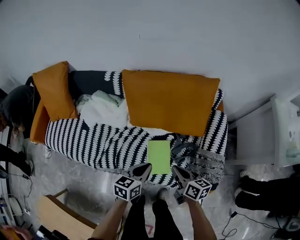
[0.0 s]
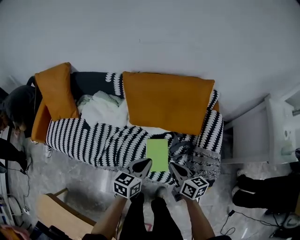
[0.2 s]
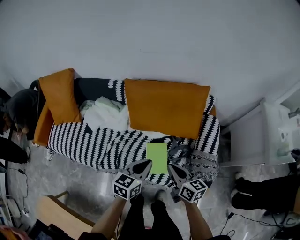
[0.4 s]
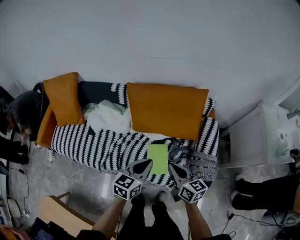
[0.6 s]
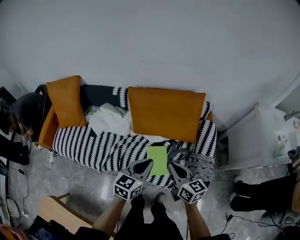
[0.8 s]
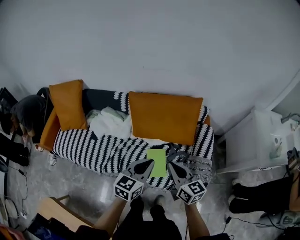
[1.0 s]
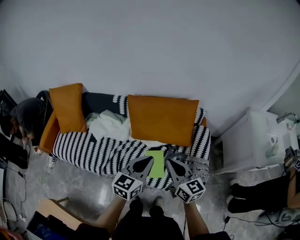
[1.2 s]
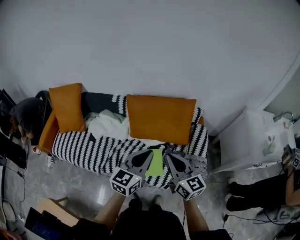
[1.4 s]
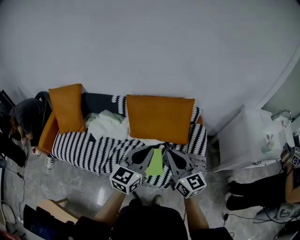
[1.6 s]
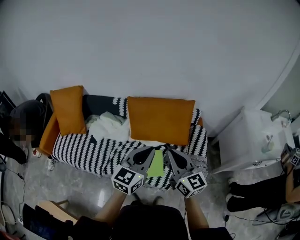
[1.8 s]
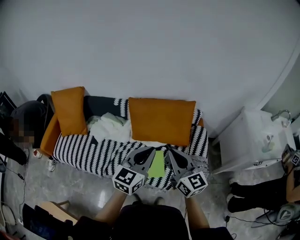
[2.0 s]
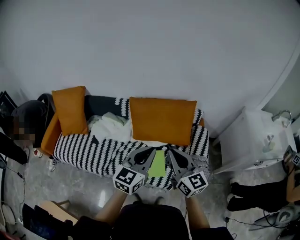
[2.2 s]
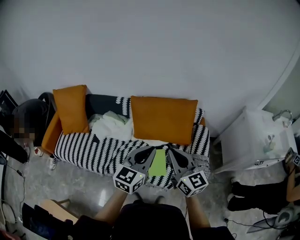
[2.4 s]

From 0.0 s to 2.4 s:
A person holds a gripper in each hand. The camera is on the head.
From 0.0 s to 1.2 s: Both grippers travel together upward, some 30 cm. The right gripper changes its angle by some 30 degrees. Meanwhile the left gripper turns by about 30 degrees.
From 1.2 s to 2.4 s: The grippers both shift upward by some 5 cm.

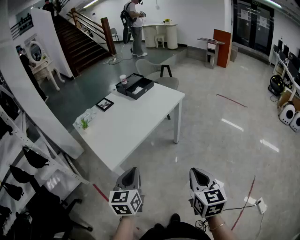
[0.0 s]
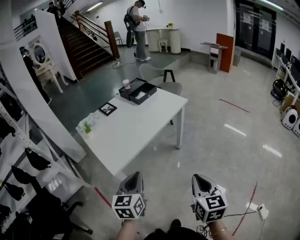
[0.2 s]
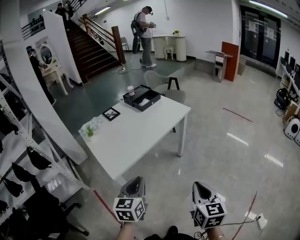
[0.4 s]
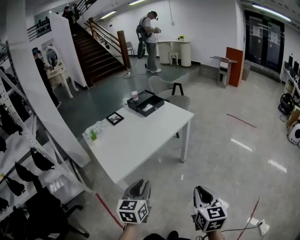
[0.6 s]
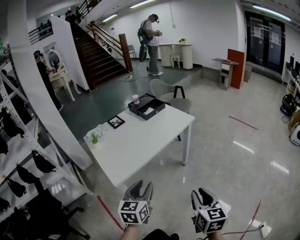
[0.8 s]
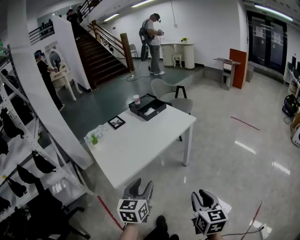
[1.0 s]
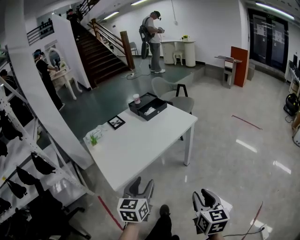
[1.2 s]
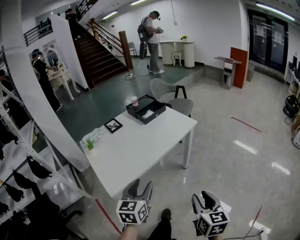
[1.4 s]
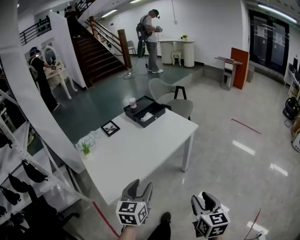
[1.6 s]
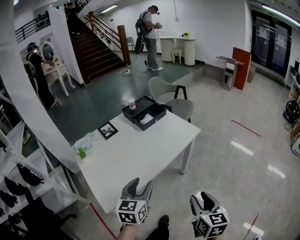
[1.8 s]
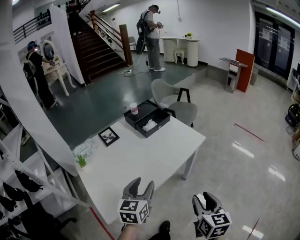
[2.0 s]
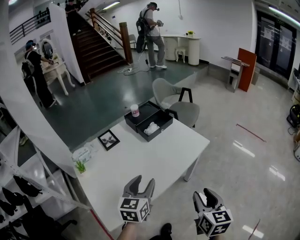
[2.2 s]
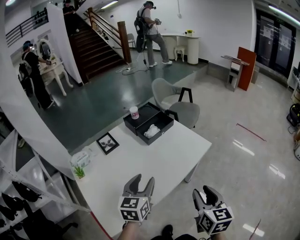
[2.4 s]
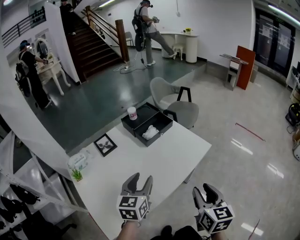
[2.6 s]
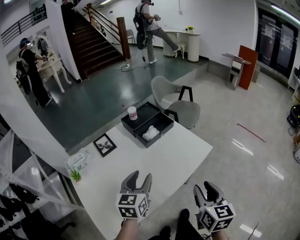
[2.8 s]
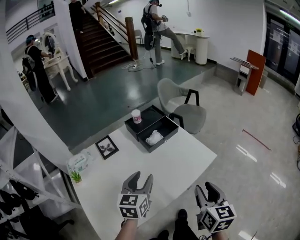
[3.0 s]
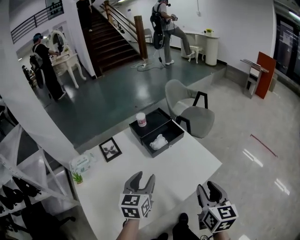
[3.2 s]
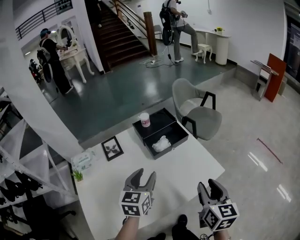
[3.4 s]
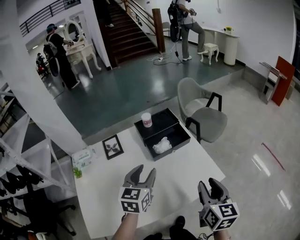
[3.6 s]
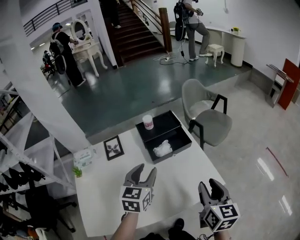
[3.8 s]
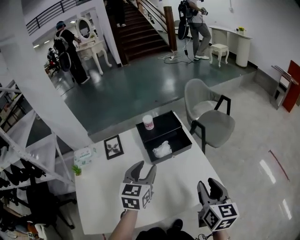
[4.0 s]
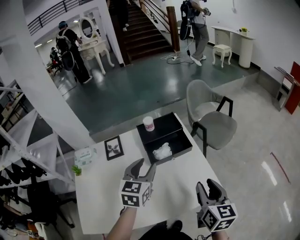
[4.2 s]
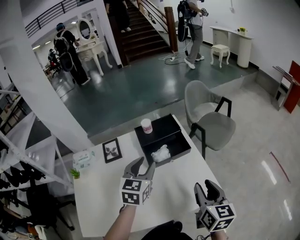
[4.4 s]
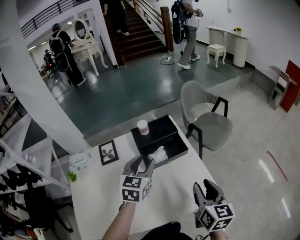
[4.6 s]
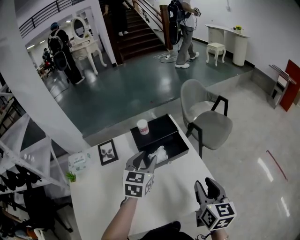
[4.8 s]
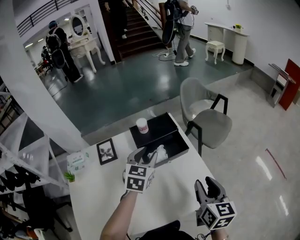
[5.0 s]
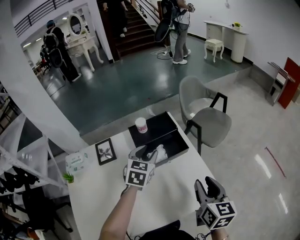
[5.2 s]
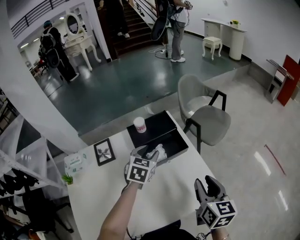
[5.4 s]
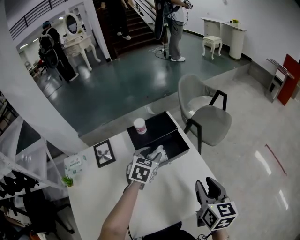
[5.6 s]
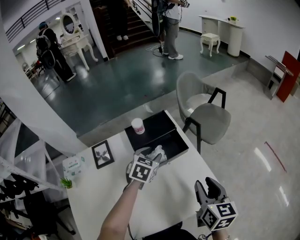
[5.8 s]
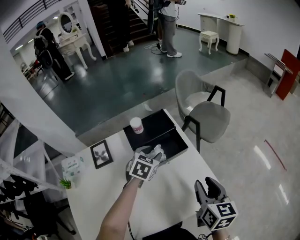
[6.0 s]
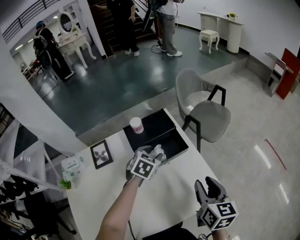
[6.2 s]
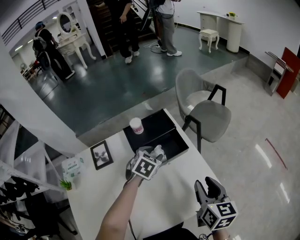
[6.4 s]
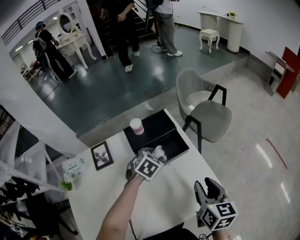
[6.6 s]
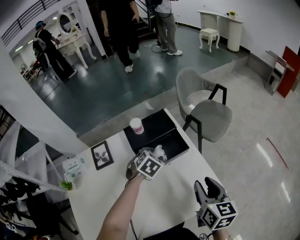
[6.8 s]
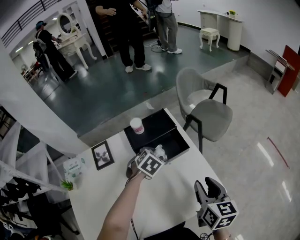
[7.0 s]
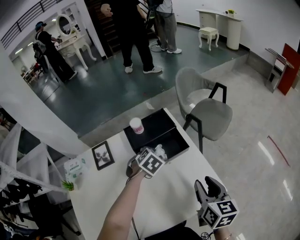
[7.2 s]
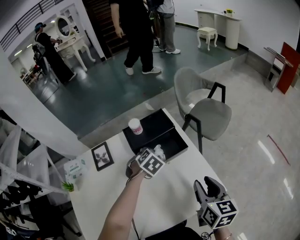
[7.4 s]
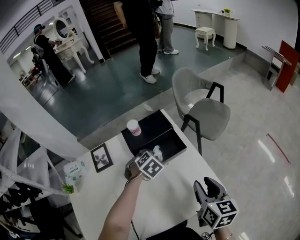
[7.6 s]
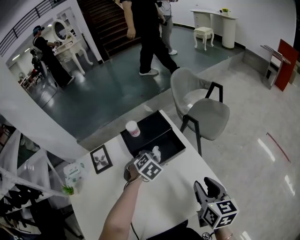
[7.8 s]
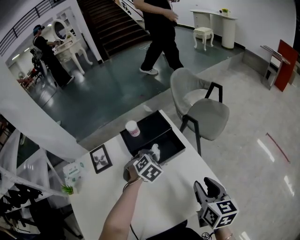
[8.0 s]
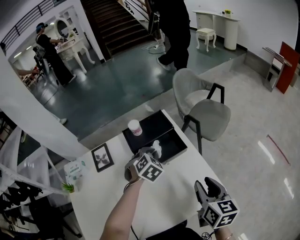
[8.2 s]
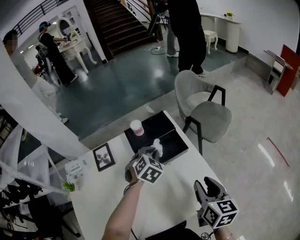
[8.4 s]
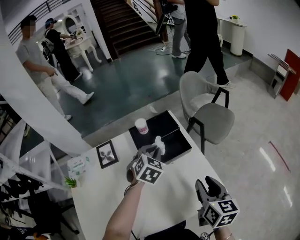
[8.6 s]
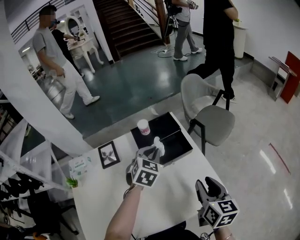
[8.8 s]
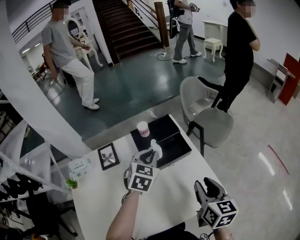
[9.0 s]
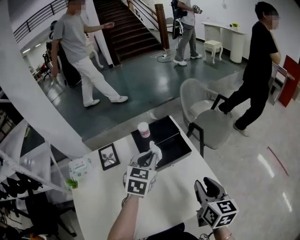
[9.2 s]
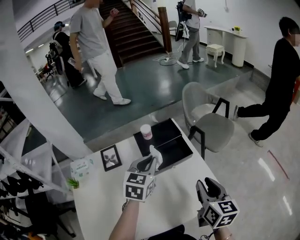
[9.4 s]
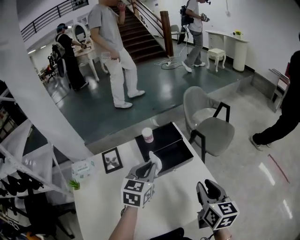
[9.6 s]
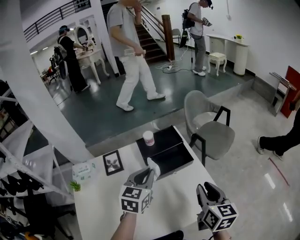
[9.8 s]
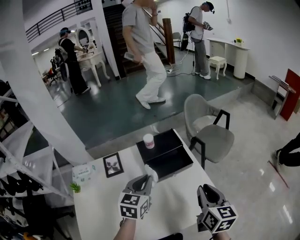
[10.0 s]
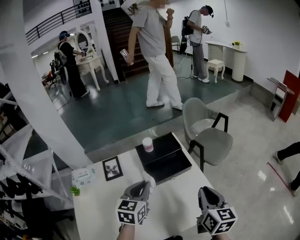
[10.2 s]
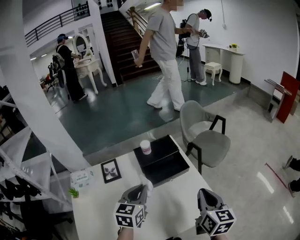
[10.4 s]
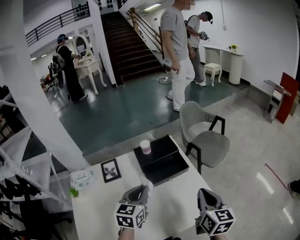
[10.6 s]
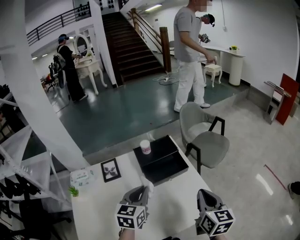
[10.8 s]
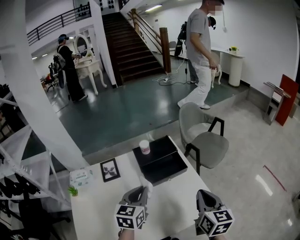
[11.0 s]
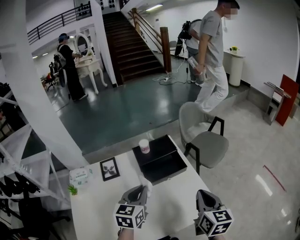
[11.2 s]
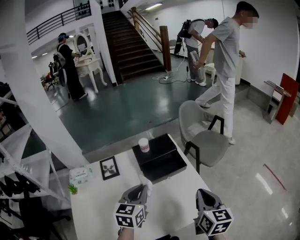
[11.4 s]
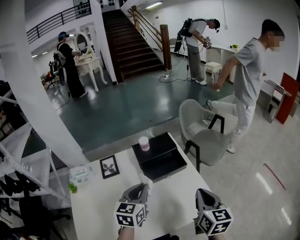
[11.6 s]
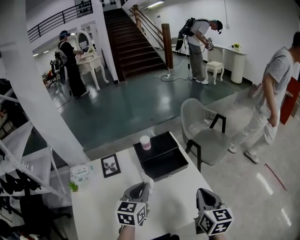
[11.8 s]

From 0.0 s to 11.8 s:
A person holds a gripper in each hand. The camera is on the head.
From 0.0 s to 1.4 s: Both grippers move forward, about 10 cm. The right gripper opens. Meanwhile the left gripper opens its fingers.
From 1.4 s to 3.0 s: Both grippers move forward, approximately 40 cm.
From 3.0 s to 4.4 s: Both grippers move forward, about 20 cm.
From 4.4 s to 6.0 s: The left gripper is displaced forward and downward by roughly 15 cm, and changes its angle by approximately 30 degrees, while the right gripper ends up approximately 5 cm from where it was.
From 6.0 s to 7.4 s: The left gripper changes its angle by about 30 degrees.
From 7.4 s to 8.8 s: The left gripper heads upward, covering about 10 cm, turns by approximately 30 degrees, and closes up.
From 8.8 s to 10.4 s: The left gripper moves backward and to the left, some 15 cm, and changes its angle by roughly 30 degrees. Meanwhile the right gripper closes.
From 10.4 s to 11.8 s: The grippers move only a little.

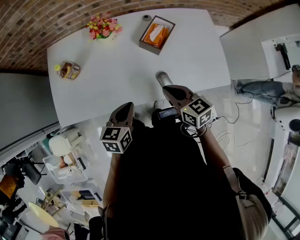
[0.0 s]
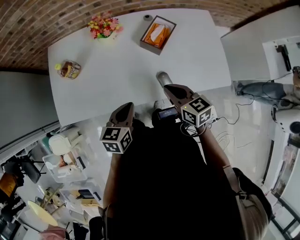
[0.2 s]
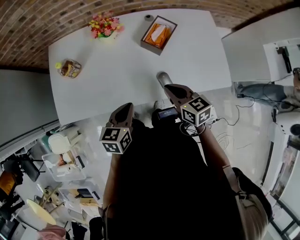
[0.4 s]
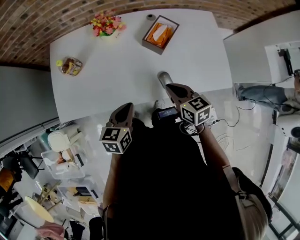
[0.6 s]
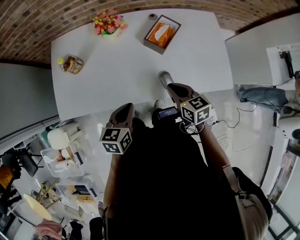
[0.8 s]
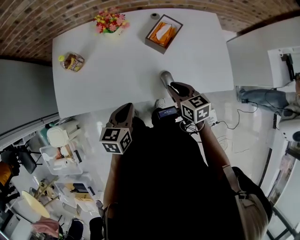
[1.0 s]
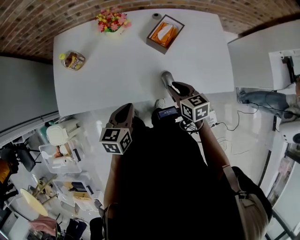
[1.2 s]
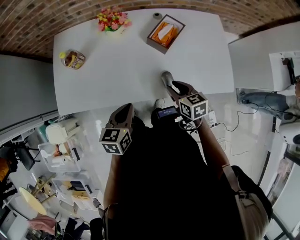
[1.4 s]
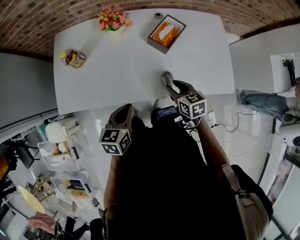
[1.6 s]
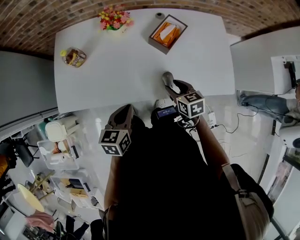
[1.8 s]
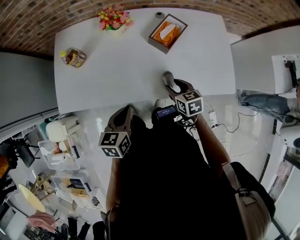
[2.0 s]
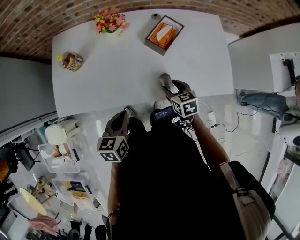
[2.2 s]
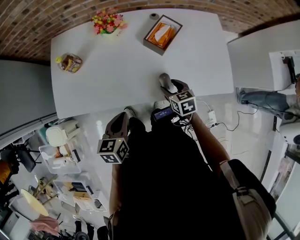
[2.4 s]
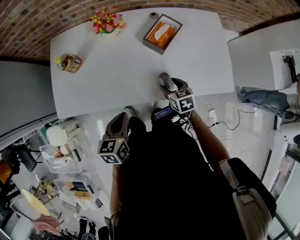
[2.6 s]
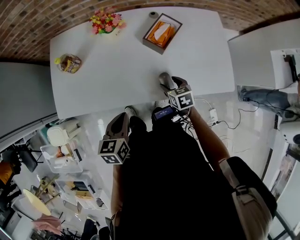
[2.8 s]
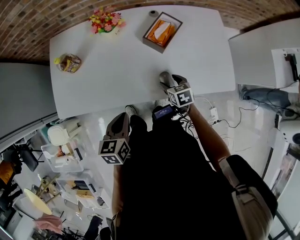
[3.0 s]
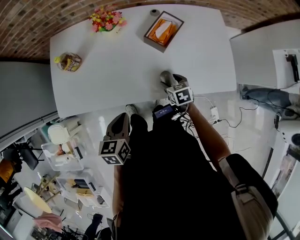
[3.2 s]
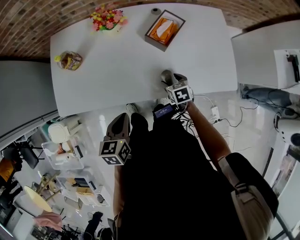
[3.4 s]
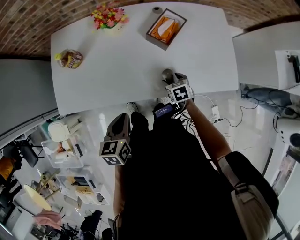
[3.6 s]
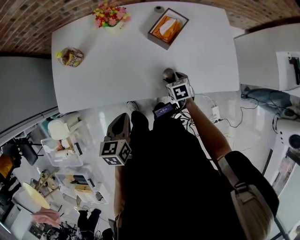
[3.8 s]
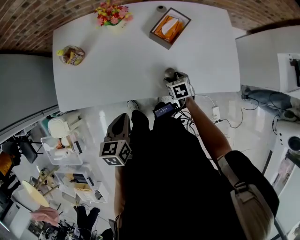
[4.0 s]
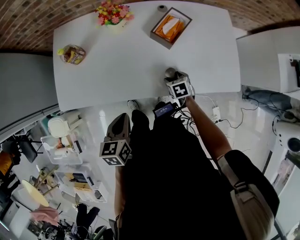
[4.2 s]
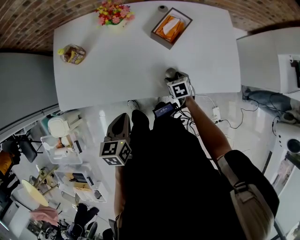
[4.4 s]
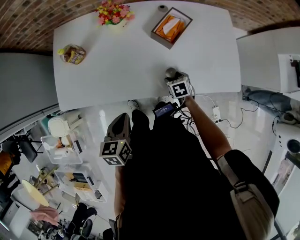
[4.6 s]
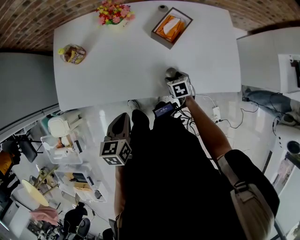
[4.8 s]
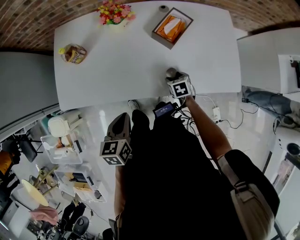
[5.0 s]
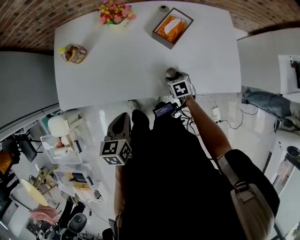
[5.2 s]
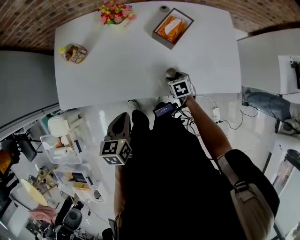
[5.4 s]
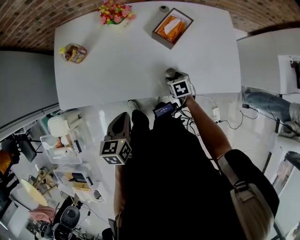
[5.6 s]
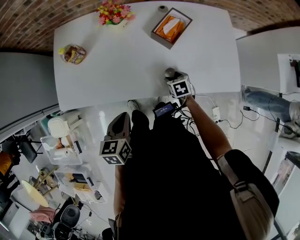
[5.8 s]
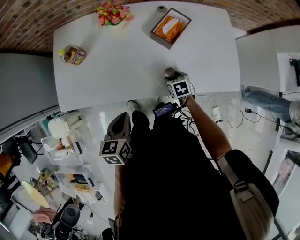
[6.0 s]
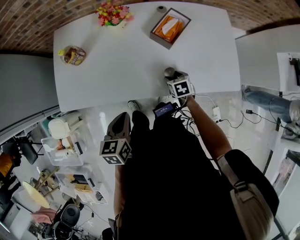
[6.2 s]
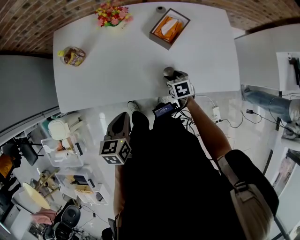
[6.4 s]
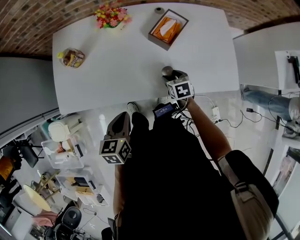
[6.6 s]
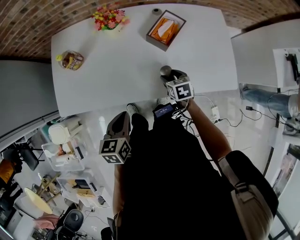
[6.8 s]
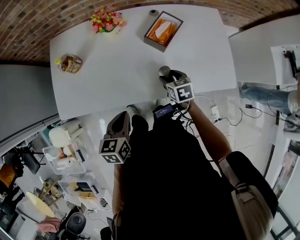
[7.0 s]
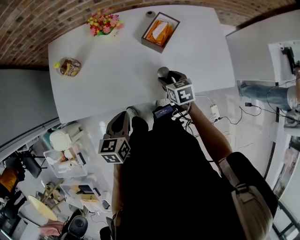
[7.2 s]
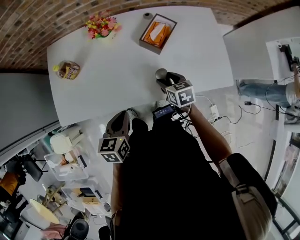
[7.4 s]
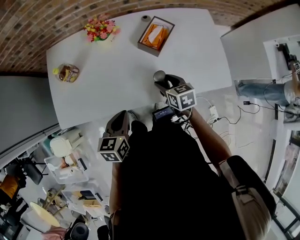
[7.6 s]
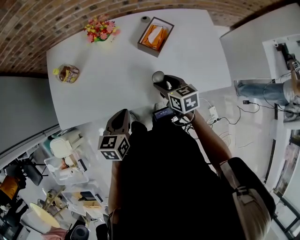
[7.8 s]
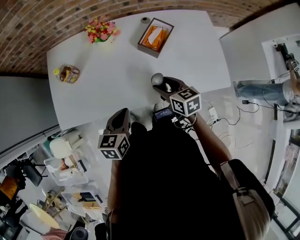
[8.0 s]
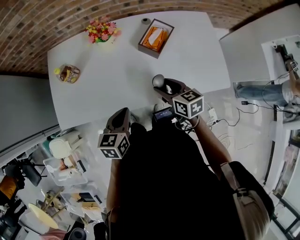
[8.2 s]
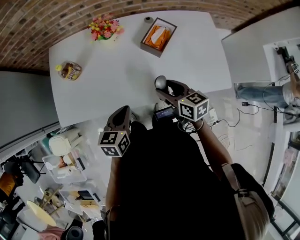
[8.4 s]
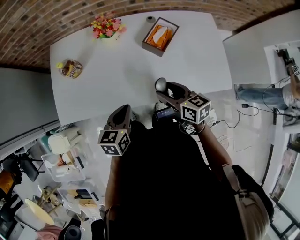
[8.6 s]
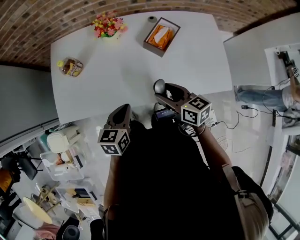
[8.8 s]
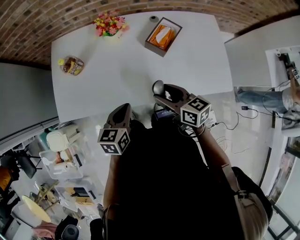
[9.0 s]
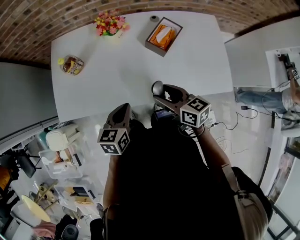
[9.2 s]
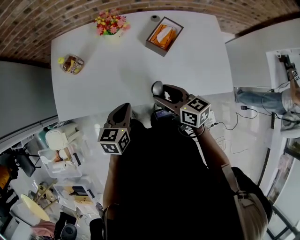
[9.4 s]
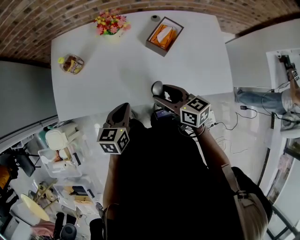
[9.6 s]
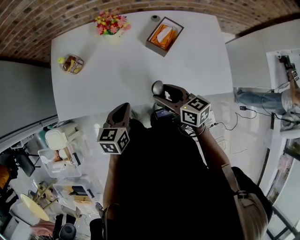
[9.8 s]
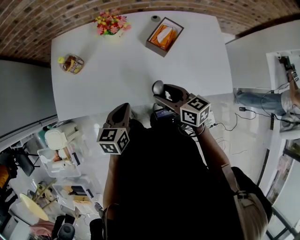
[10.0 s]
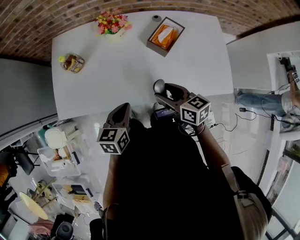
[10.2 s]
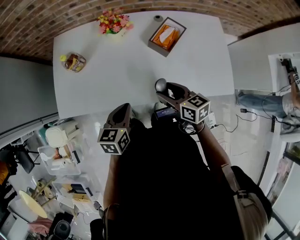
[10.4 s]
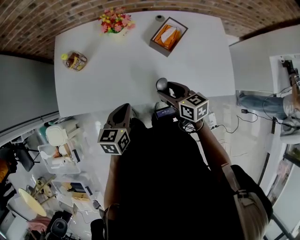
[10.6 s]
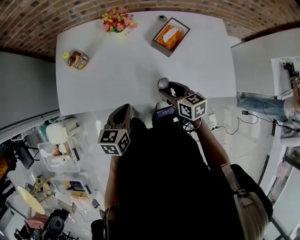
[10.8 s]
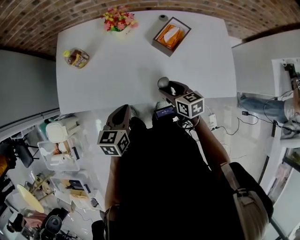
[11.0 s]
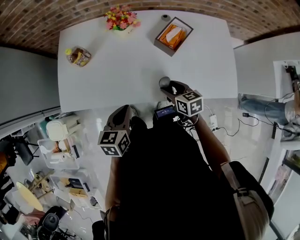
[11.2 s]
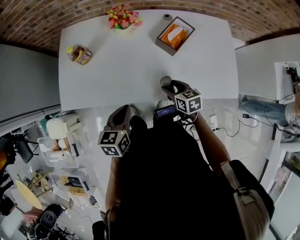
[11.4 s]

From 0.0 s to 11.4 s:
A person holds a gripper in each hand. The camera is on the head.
From 0.0 s to 1.4 s: The right gripper goes approximately 10 cm downward, and opens.
From 1.4 s to 2.8 s: The right gripper travels downward by roughly 10 cm, and opens its fingers.
From 2.8 s to 4.2 s: The right gripper goes some 10 cm downward.
From 4.2 s to 5.6 s: Both grippers stay put.
From 5.6 s to 7.2 s: The right gripper shifts approximately 10 cm upward.
From 7.2 s to 8.6 s: The right gripper heads upward and backward, covering some 10 cm, and turns by approximately 30 degrees.
From 8.6 s to 10.0 s: The grippers make only small movements.
From 10.0 s to 11.4 s: The right gripper heads downward, covering approximately 10 cm.
